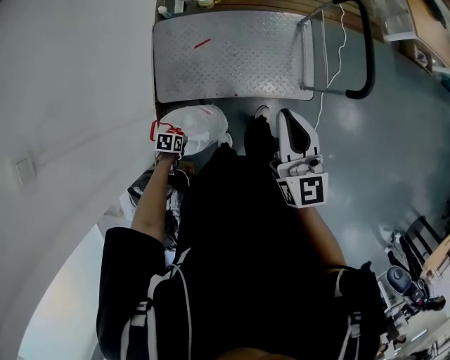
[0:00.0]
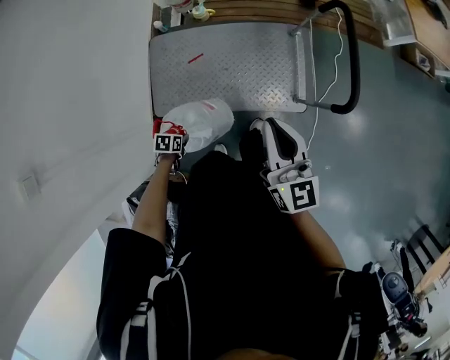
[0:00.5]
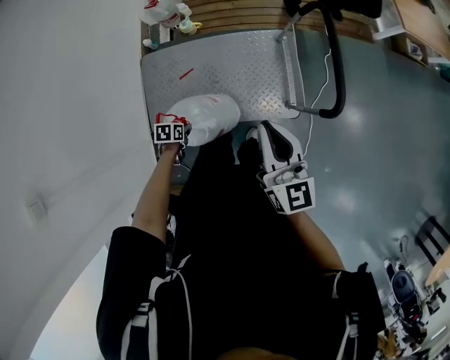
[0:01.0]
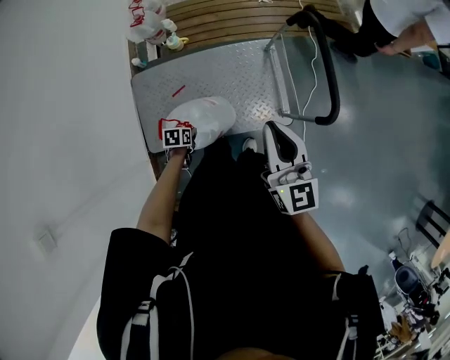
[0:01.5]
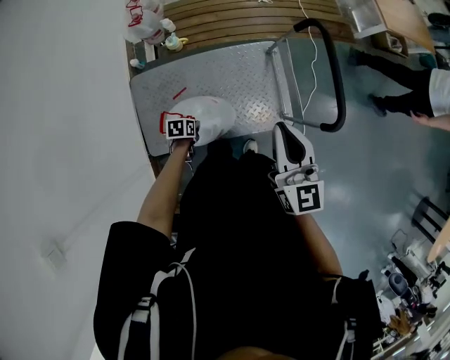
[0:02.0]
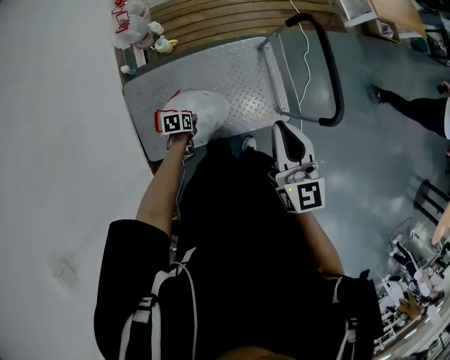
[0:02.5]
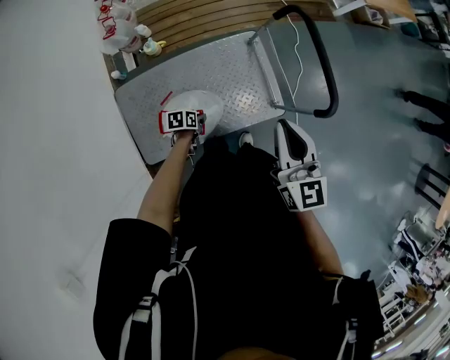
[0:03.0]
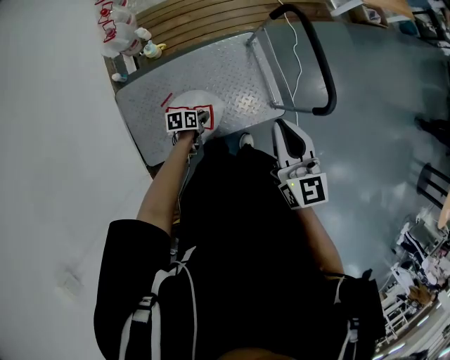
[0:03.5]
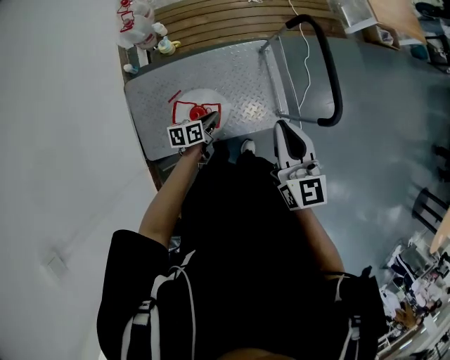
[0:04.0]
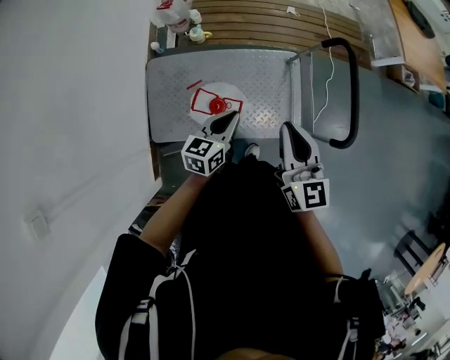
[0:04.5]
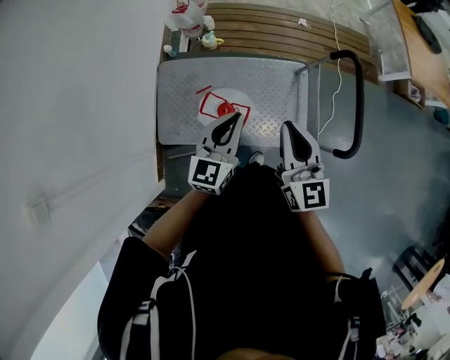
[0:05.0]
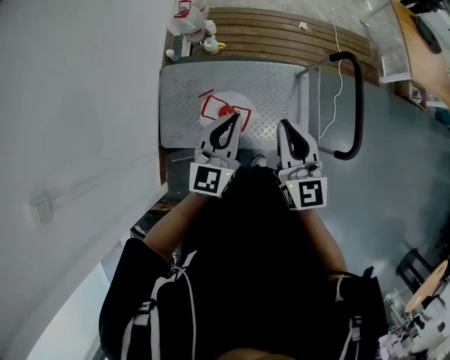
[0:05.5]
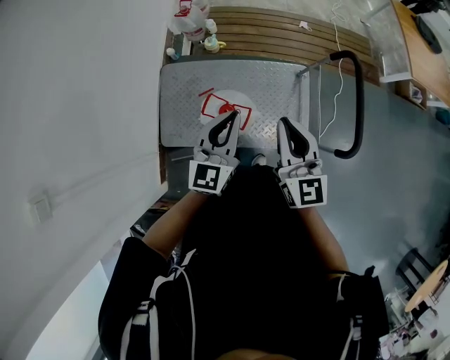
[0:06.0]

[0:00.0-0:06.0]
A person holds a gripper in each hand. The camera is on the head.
0:00.0 to 0:02.0: The right gripper goes approximately 20 cm forward. The left gripper moves forward, about 35 cm.
0:02.0 to 0:04.0: The left gripper shifts approximately 15 cm upward, to the right and forward, and tips its fingers upward by some 30 degrees.
0:04.0 to 0:06.0: The left gripper moves upward, roughly 30 cm, and changes its angle by some 60 degrees, while the right gripper changes place by about 10 cm.

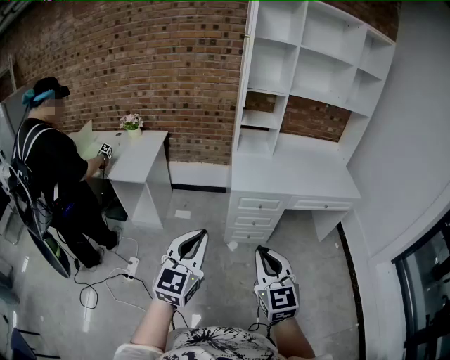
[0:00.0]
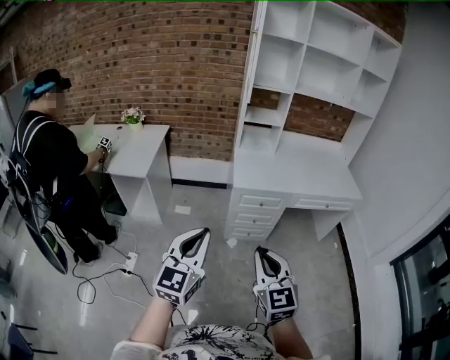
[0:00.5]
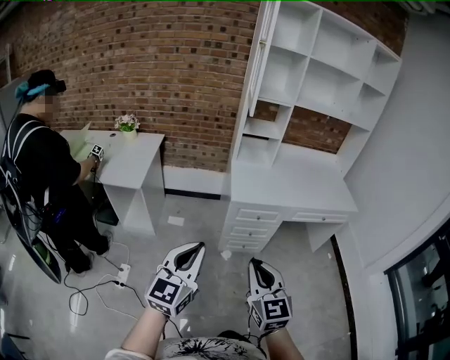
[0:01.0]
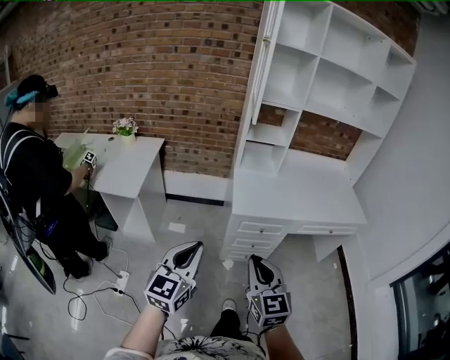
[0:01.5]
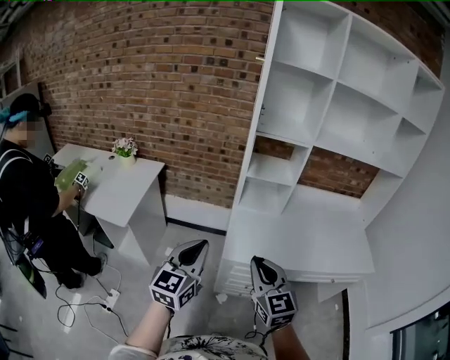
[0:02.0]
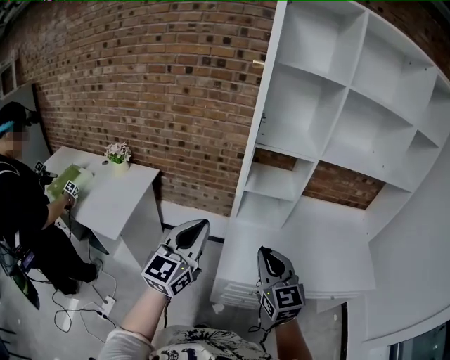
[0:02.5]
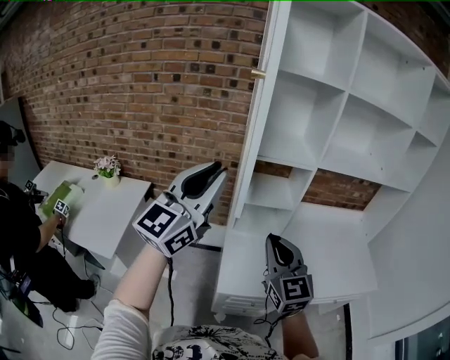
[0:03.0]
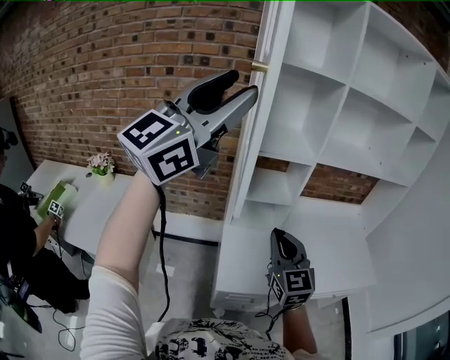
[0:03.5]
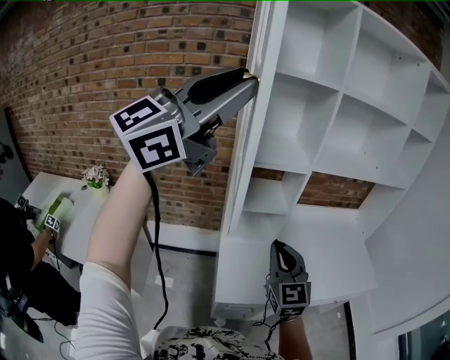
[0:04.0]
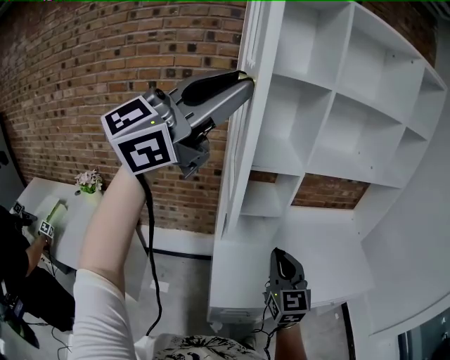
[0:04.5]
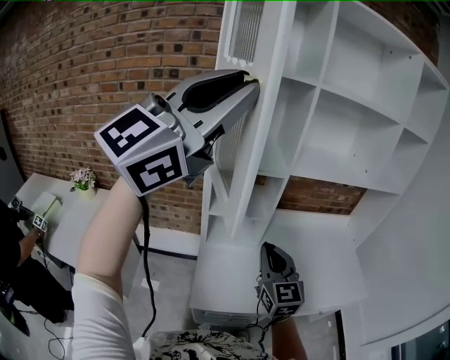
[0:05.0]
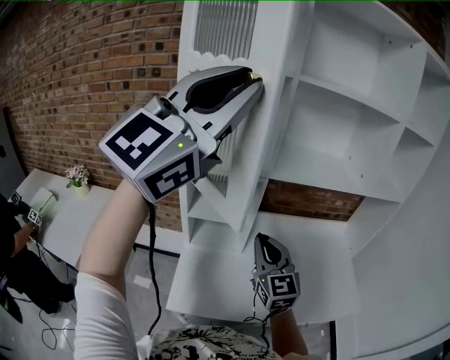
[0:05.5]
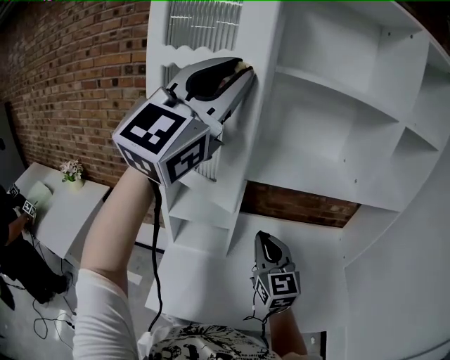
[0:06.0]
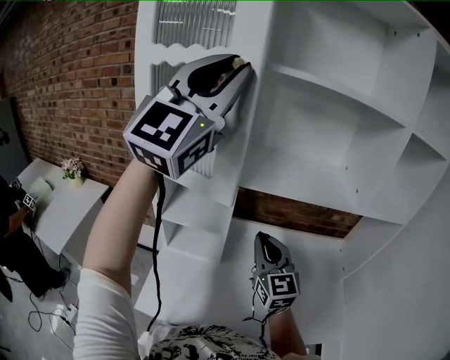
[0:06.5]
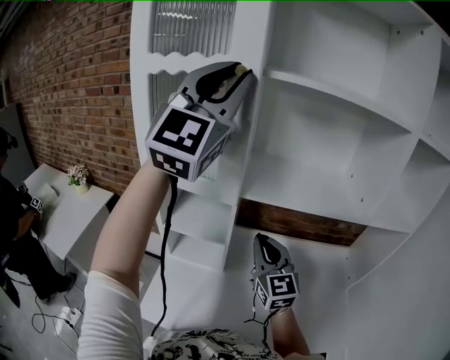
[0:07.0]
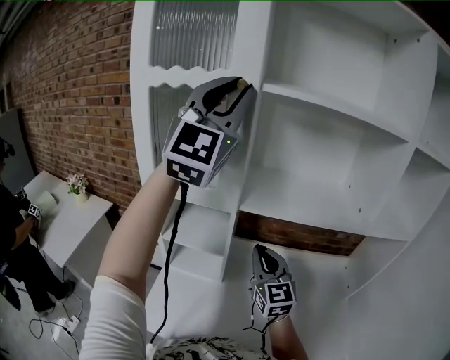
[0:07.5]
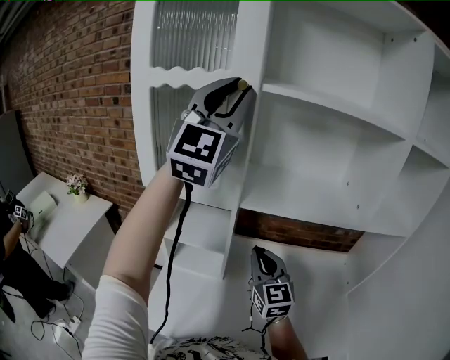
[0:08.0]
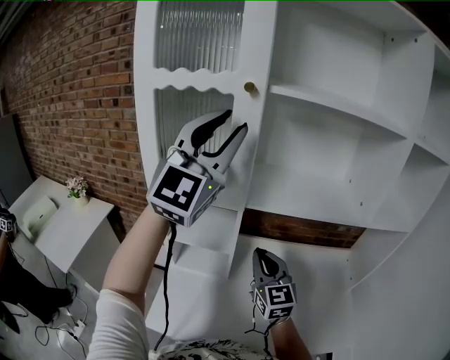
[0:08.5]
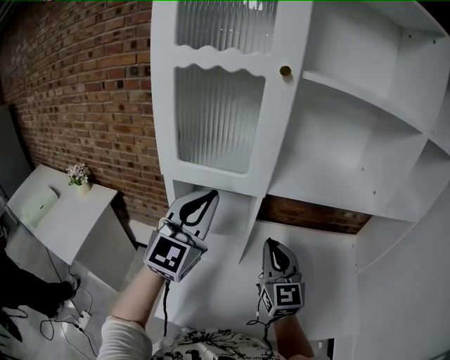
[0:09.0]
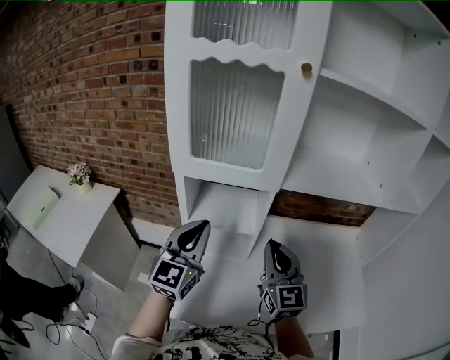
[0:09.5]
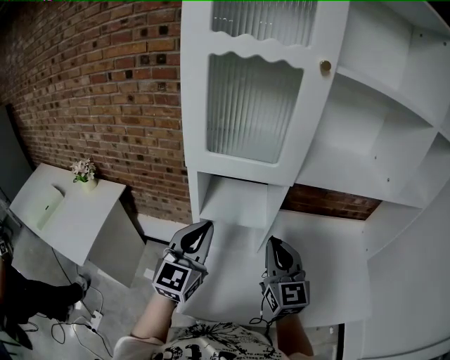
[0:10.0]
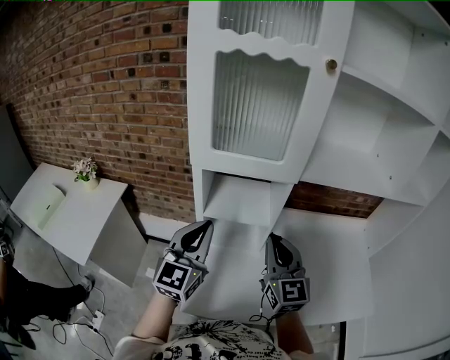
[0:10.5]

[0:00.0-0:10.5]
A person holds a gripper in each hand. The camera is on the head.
0:00.0 to 0:02.0: Both grippers move forward, roughly 40 cm.
0:02.0 to 0:04.0: The left gripper travels upward by some 40 cm, turns by approximately 50 degrees, and opens its fingers. The right gripper ends up about 25 cm from where it was.
0:04.0 to 0:06.5: The right gripper shifts by about 30 cm. Meanwhile the left gripper moves some 35 cm, and changes its angle by roughly 40 degrees.
0:06.5 to 0:08.5: The left gripper goes approximately 5 cm downward.
0:08.5 to 0:10.5: The right gripper travels to the left and backward by roughly 15 cm, while the left gripper travels downward and to the left by roughly 35 cm, rotates roughly 30 degrees, and closes its fingers.

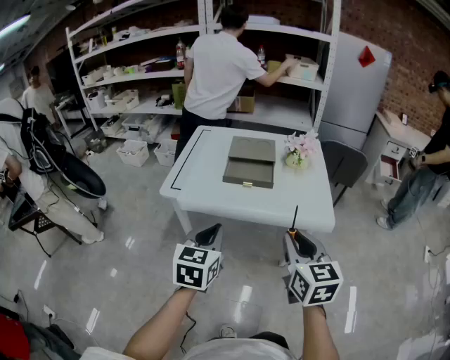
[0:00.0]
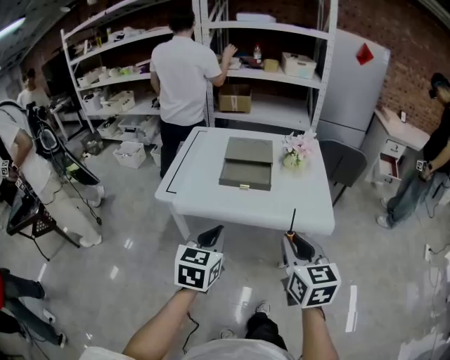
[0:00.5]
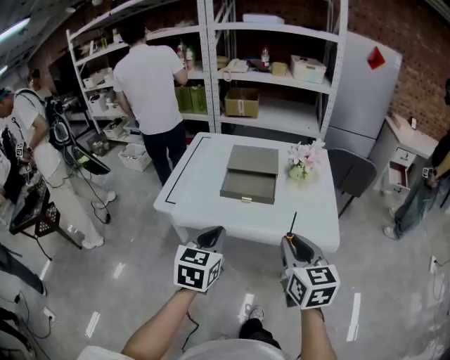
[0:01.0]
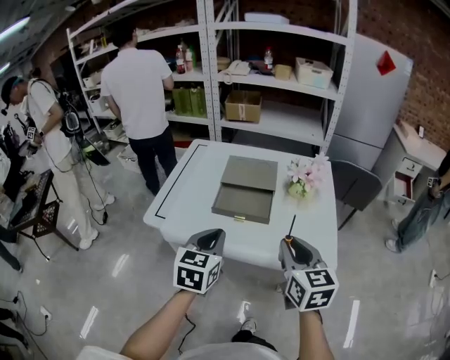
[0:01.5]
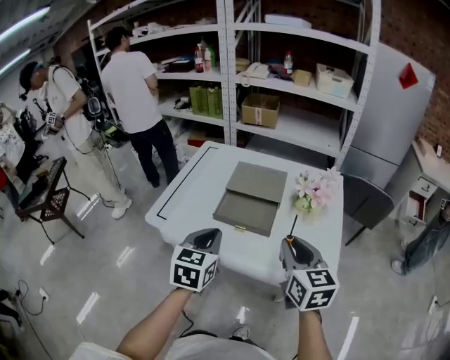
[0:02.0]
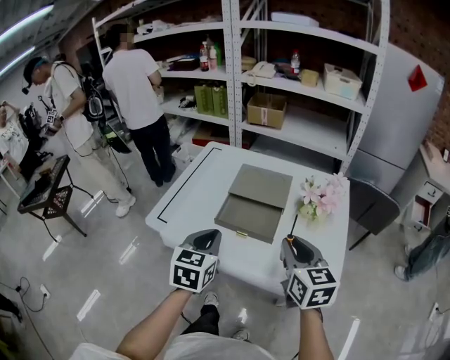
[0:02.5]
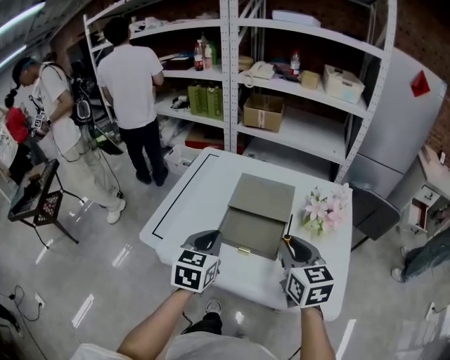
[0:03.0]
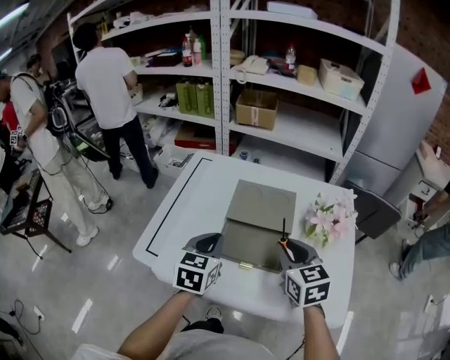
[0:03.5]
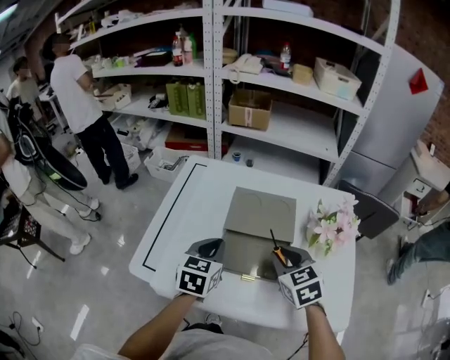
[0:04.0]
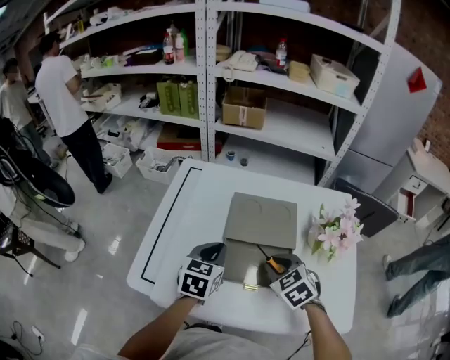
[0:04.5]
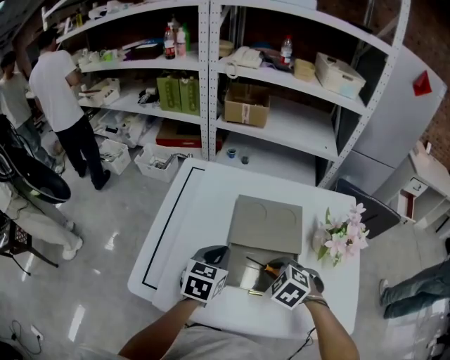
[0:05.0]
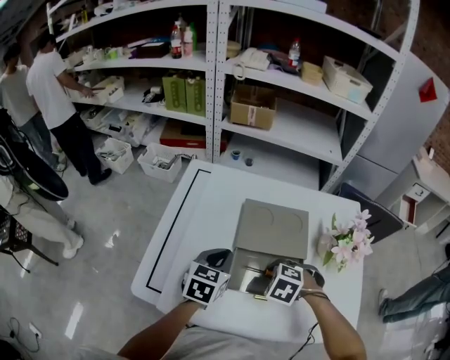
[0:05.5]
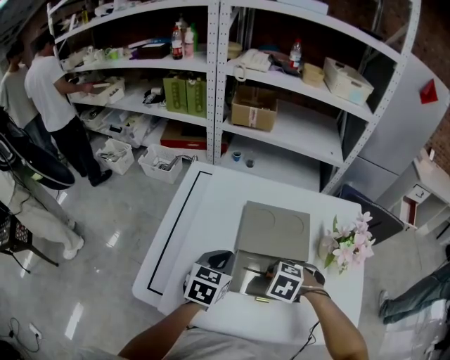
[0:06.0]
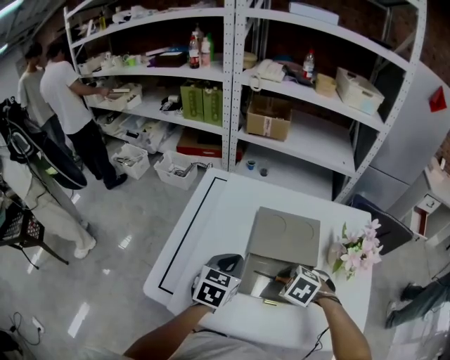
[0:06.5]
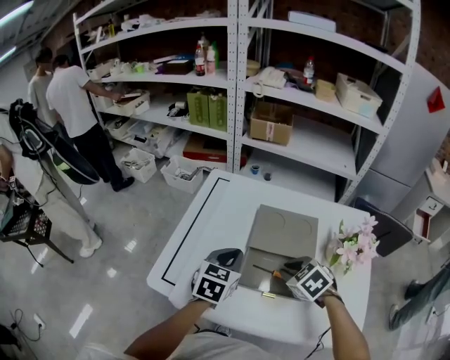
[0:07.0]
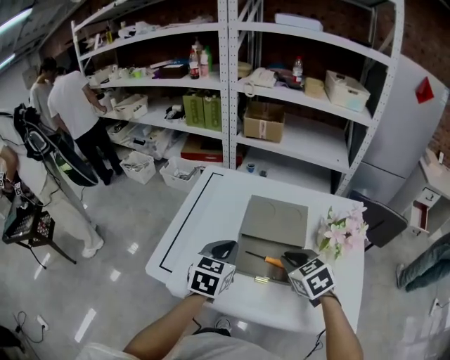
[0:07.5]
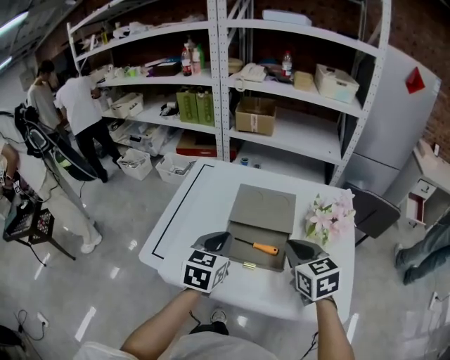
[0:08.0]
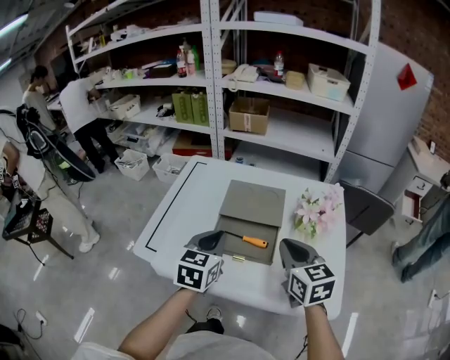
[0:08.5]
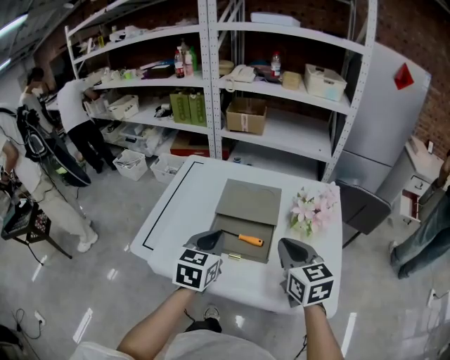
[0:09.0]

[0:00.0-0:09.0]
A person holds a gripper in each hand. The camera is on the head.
0:00.0 to 0:02.0: The two grippers go some 25 cm forward.
0:02.0 to 0:04.5: The left gripper heads forward and downward, covering some 25 cm, while the right gripper is displaced forward, downward and to the left by about 25 cm, and points its fingers about 30 degrees further downward.
0:07.0 to 0:09.0: The right gripper moves upward, backward and to the right, approximately 20 cm, and tilts its fingers approximately 40 degrees upward. Meanwhile the left gripper is displaced backward, to the right and upward by about 15 cm.

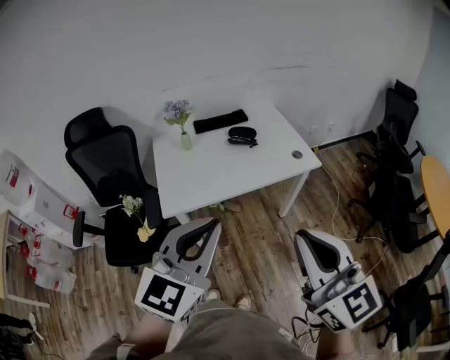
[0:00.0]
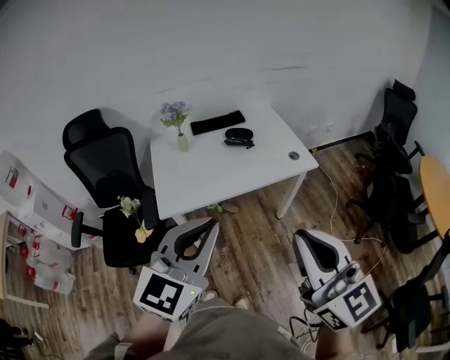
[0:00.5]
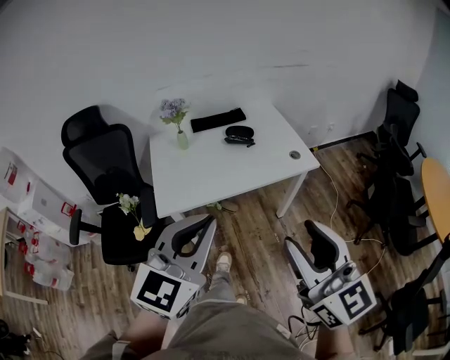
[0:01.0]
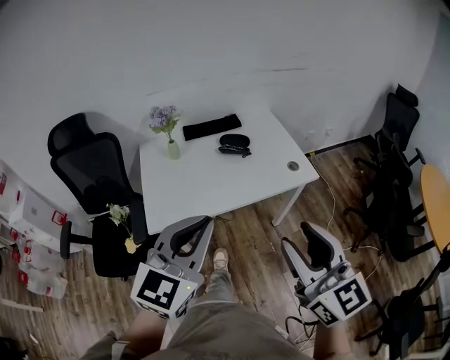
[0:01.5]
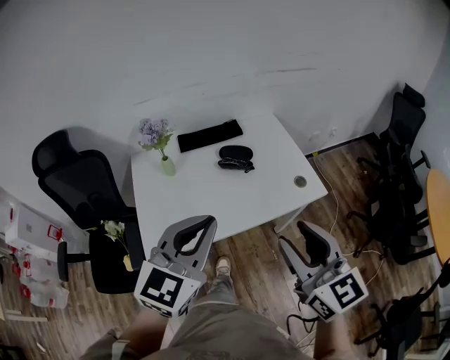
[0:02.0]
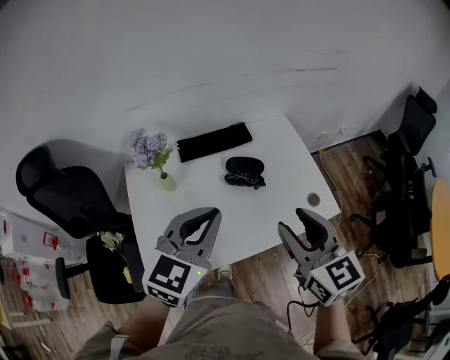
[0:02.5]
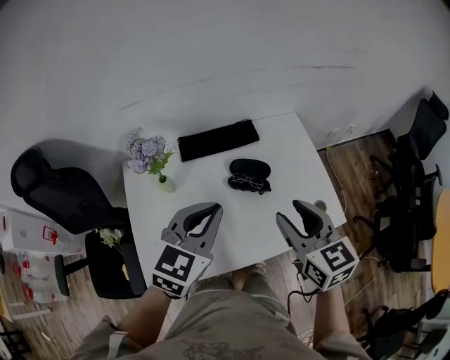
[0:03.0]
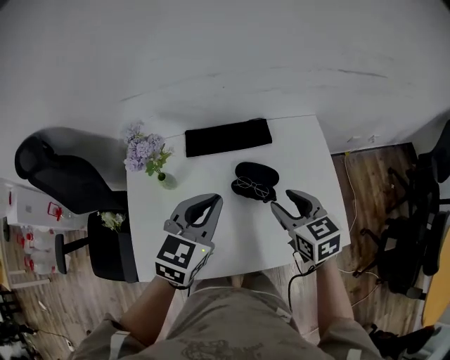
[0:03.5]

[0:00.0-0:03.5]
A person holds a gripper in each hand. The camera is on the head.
0:00.0 to 0:02.0: The two grippers go roughly 25 cm forward. The right gripper opens.
0:02.0 to 0:03.5: The grippers both shift forward and downward by approximately 35 cm. The right gripper swivels approximately 30 degrees; the left gripper turns by roughly 20 degrees.
